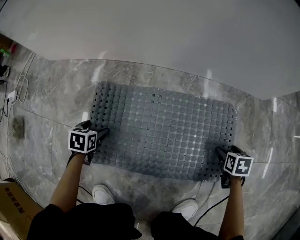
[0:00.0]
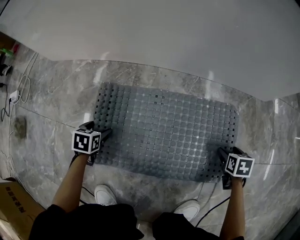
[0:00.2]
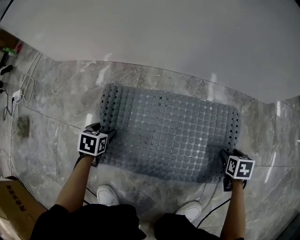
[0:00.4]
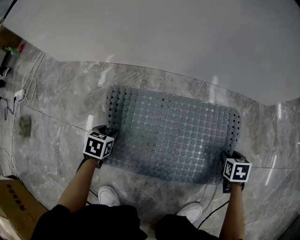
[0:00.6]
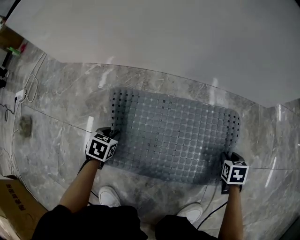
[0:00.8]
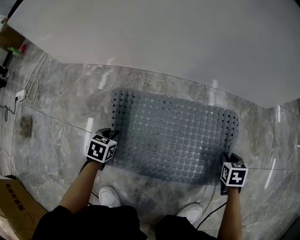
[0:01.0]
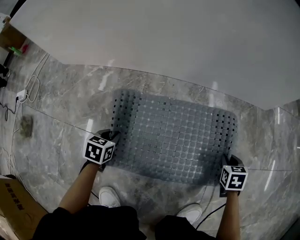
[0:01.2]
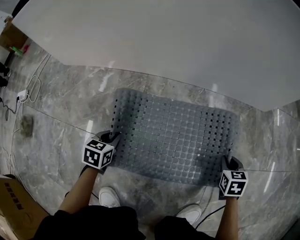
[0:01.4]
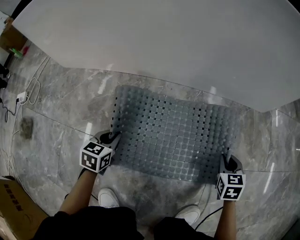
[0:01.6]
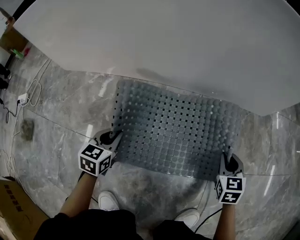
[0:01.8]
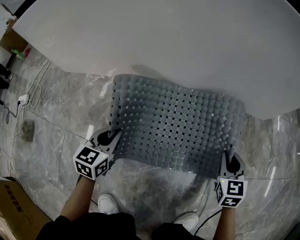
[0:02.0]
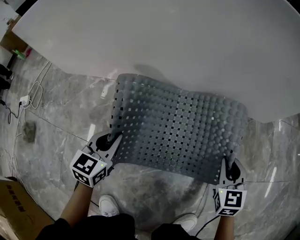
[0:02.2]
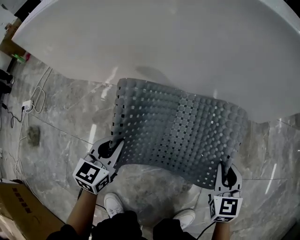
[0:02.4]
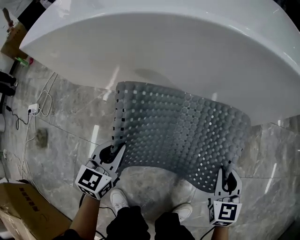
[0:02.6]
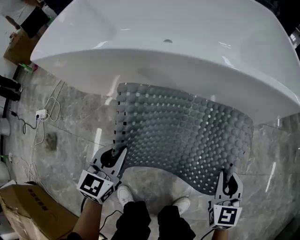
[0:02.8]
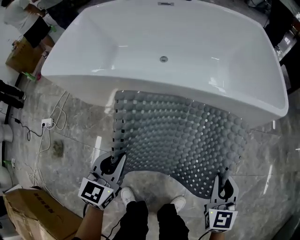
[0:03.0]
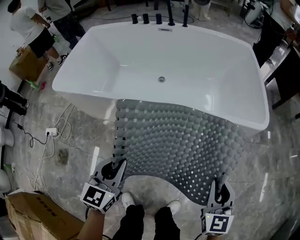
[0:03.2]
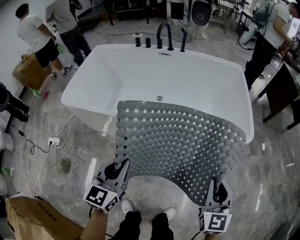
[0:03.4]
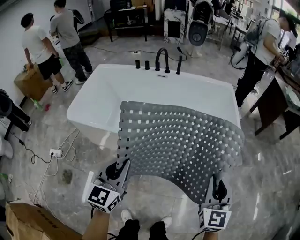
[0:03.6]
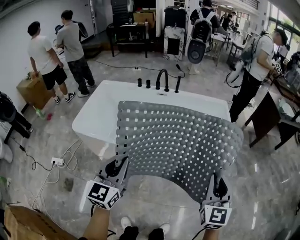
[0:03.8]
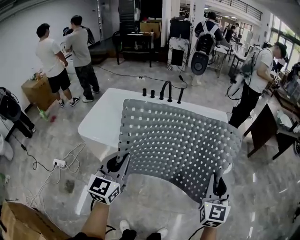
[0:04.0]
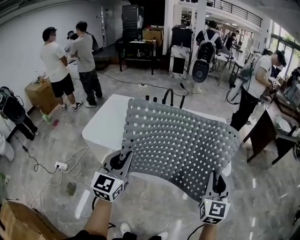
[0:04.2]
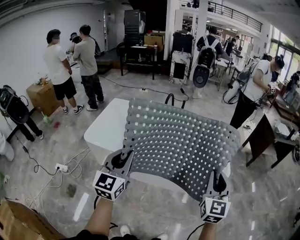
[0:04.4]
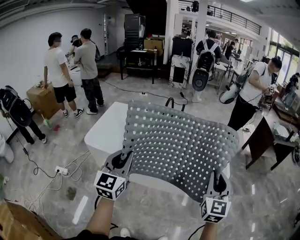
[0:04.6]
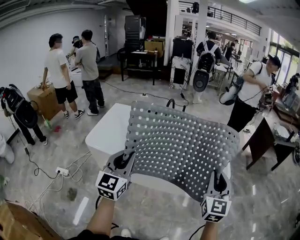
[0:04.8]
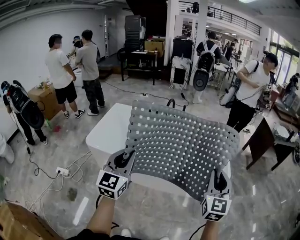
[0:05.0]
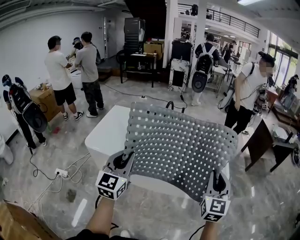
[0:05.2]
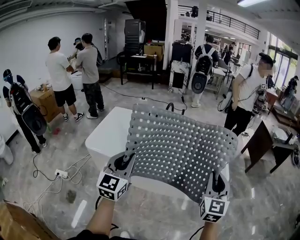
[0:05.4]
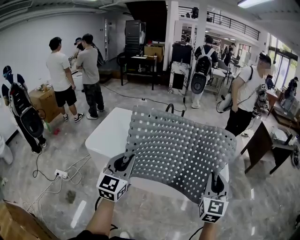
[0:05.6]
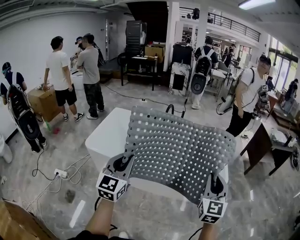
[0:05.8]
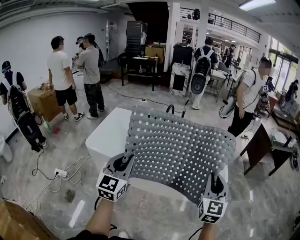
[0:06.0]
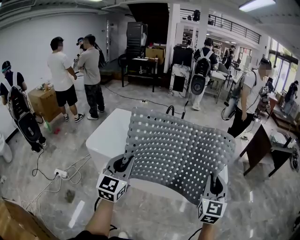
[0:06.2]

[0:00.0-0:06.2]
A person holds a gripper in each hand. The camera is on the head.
0:00.0 to 0:01.6: The left gripper is displaced upward and to the right by approximately 10 cm, swivels some 20 degrees, and closes its fingers; the right gripper moves upward and to the left, some 10 cm, rotates roughly 30 degrees, and closes.
0:01.6 to 0:03.2: The grippers both shift upward by approximately 60 cm. The right gripper rotates approximately 30 degrees. Meanwhile the left gripper swivels some 30 degrees.
0:03.2 to 0:04.6: The grippers both shift upward by about 40 cm. The right gripper turns by about 20 degrees, while the left gripper swivels approximately 30 degrees.
0:04.6 to 0:06.2: There are only small adjustments of the grippers.

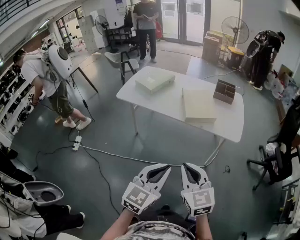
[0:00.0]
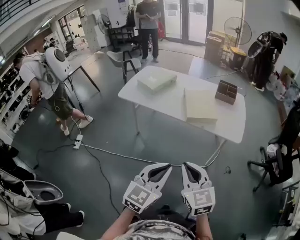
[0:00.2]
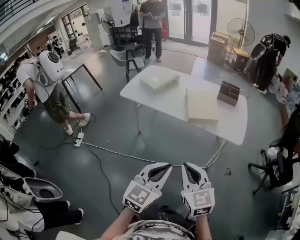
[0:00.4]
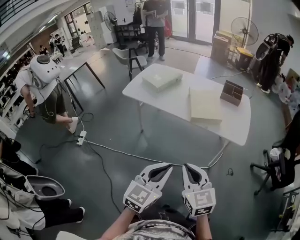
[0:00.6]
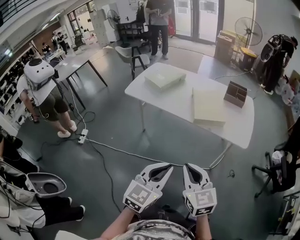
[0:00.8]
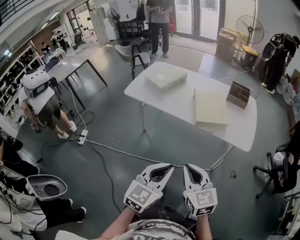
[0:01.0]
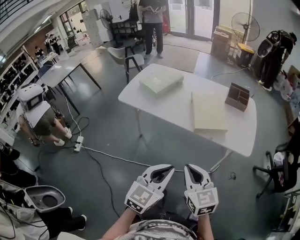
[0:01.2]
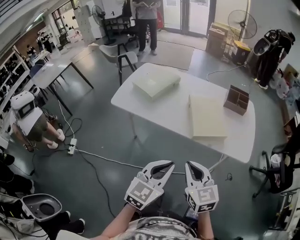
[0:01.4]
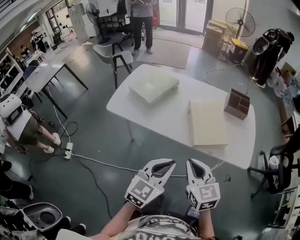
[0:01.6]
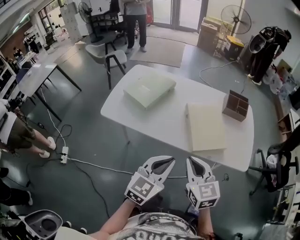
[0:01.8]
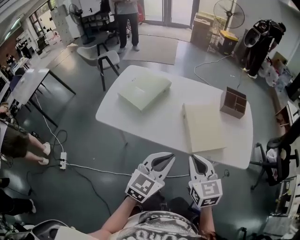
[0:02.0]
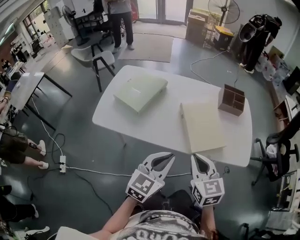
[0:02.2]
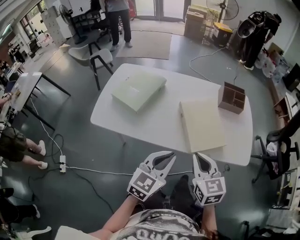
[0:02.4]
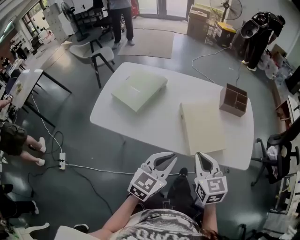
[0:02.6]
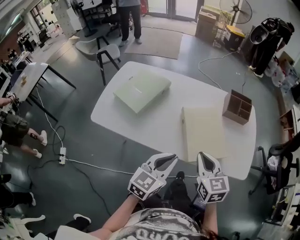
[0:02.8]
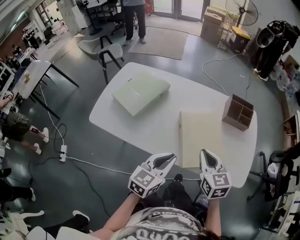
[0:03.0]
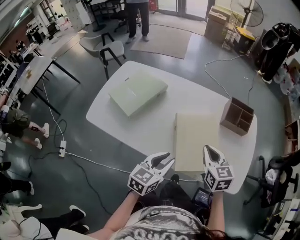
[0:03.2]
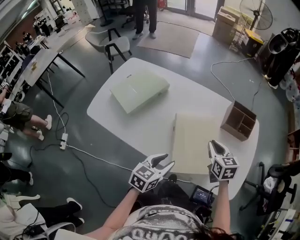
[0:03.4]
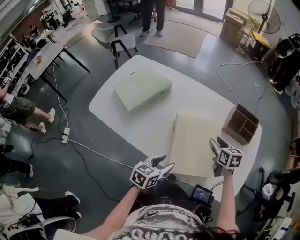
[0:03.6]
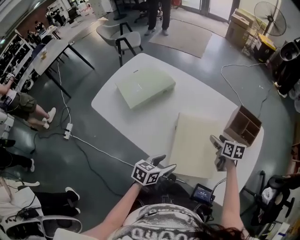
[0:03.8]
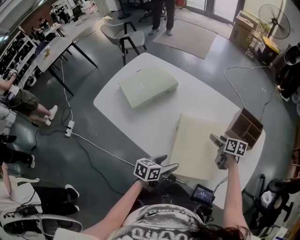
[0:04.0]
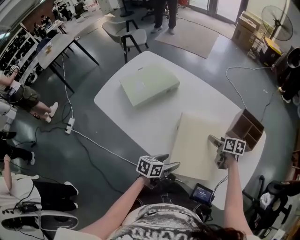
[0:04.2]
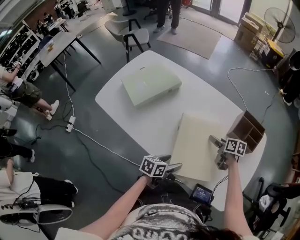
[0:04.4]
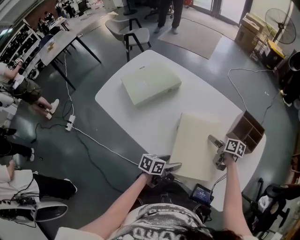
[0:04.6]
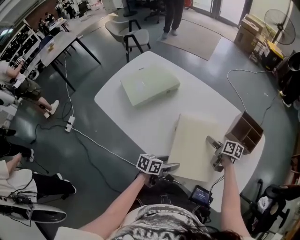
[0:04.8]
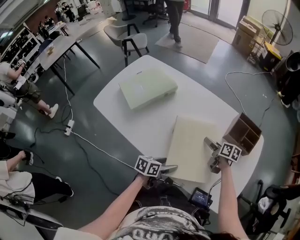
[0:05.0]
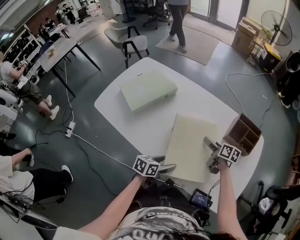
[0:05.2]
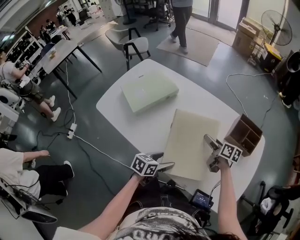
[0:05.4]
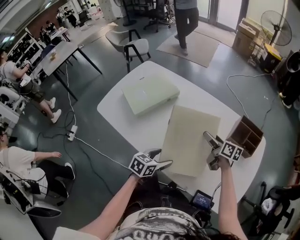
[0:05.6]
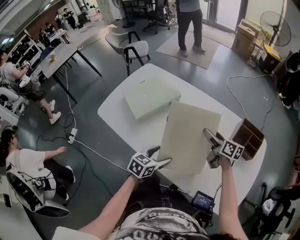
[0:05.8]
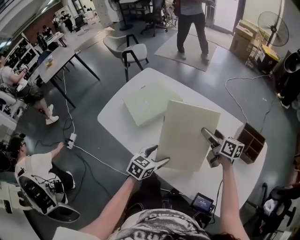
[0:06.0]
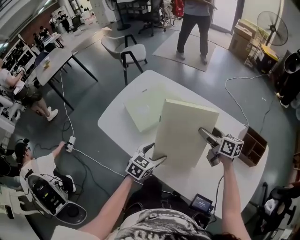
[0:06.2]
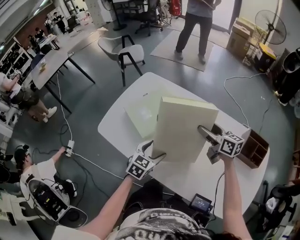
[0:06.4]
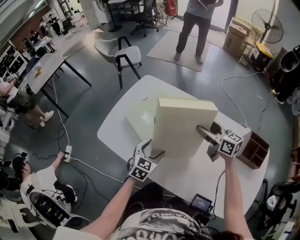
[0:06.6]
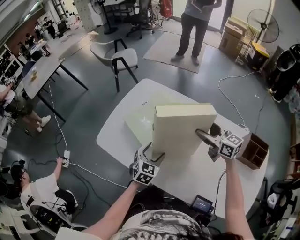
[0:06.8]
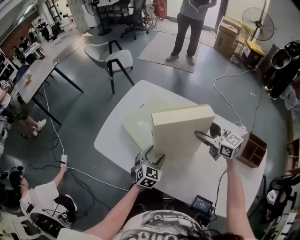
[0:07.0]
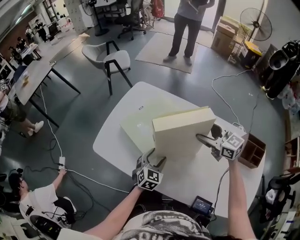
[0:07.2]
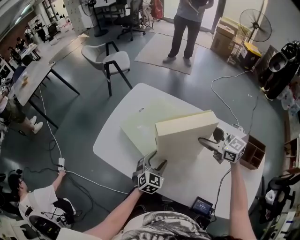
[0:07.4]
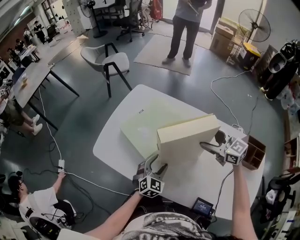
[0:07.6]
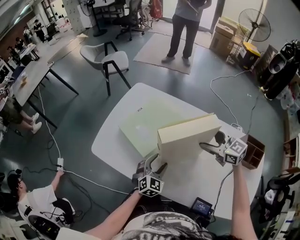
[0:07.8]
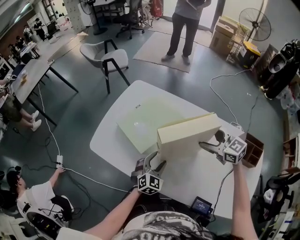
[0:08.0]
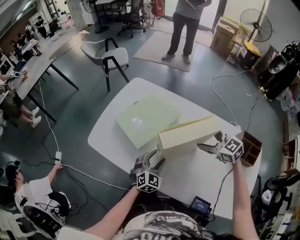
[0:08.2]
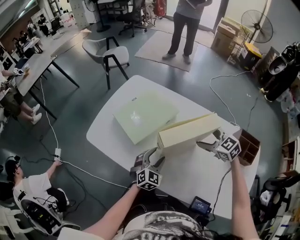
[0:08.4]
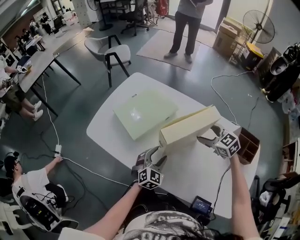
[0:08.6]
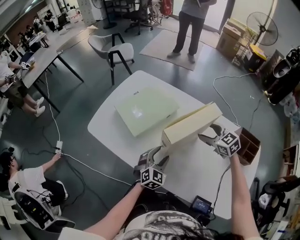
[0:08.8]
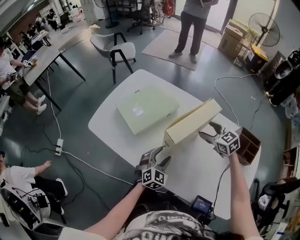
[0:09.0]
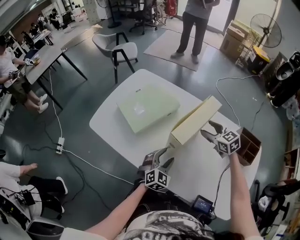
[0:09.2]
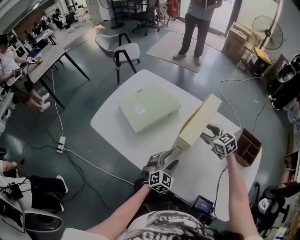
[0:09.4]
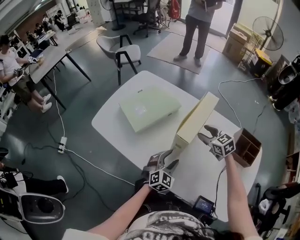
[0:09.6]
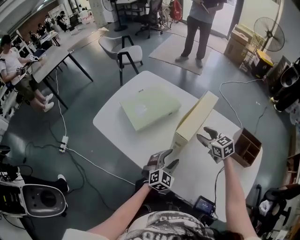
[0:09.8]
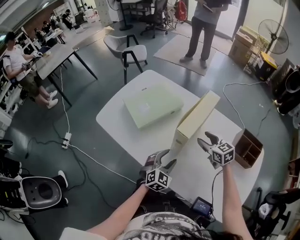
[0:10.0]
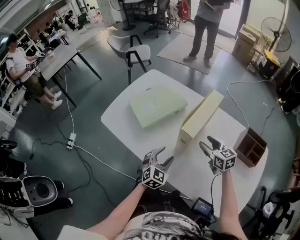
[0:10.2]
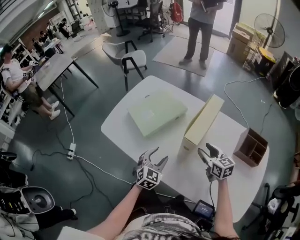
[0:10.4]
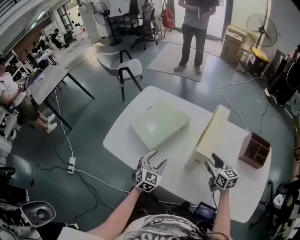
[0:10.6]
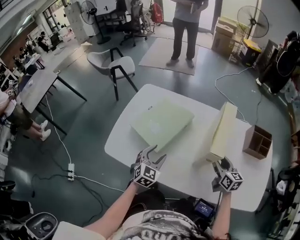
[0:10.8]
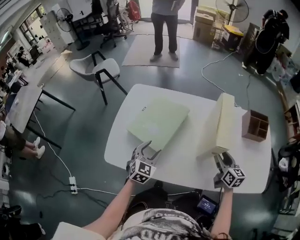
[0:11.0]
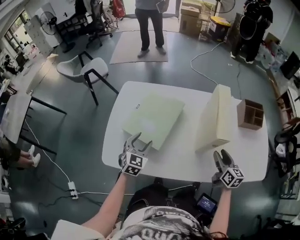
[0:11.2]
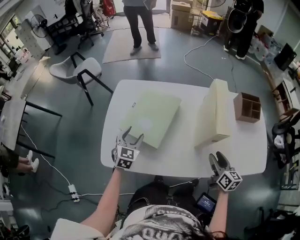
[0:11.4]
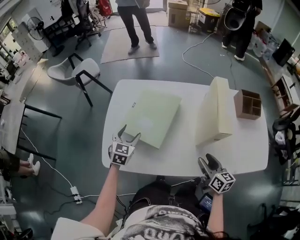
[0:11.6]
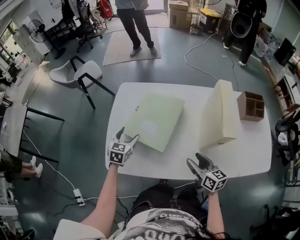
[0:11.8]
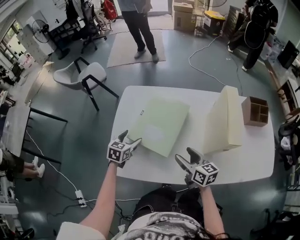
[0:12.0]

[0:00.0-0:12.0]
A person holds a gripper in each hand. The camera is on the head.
0:00.0 to 0:01.6: Both grippers travel together forward, roughly 25 cm.
0:01.6 to 0:03.0: The two grippers go approximately 20 cm forward.
0:03.0 to 0:04.4: The left gripper moves downward and to the right, about 20 cm, swivels about 40 degrees, and opens its fingers. The right gripper goes roughly 30 cm downward, forward and to the right, changes its angle by approximately 40 degrees, and opens.
0:04.4 to 0:06.0: The right gripper travels upward, to the left and forward by roughly 20 cm, and rotates roughly 30 degrees, while the left gripper shifts some 15 cm to the left, forward and upward, and turns by about 30 degrees.
0:06.0 to 0:07.6: The left gripper heads forward and to the left, covering about 15 cm, and turns by approximately 30 degrees. Meanwhile the right gripper shifts some 15 cm to the left, forward and upward, and turns by some 40 degrees.
0:07.6 to 0:09.0: The right gripper shifts approximately 10 cm downward and to the right. The left gripper shifts about 10 cm backward and to the right.
0:09.0 to 0:10.4: The right gripper heads backward, covering about 10 cm, and rotates some 30 degrees, while the left gripper travels to the left by roughly 5 cm.
0:10.4 to 0:12.0: The left gripper shifts by approximately 35 cm, and rotates about 30 degrees. The right gripper shifts by about 25 cm, and rotates roughly 30 degrees.

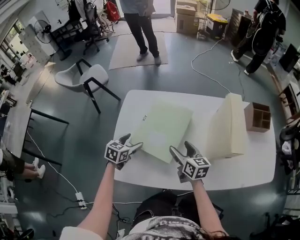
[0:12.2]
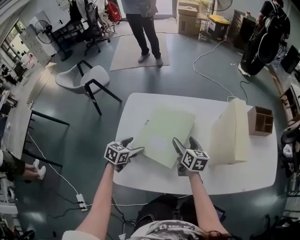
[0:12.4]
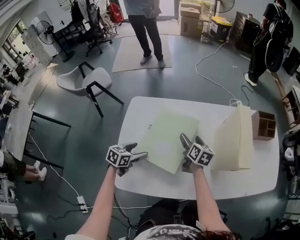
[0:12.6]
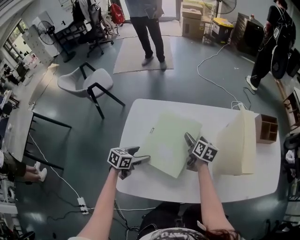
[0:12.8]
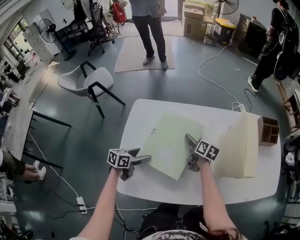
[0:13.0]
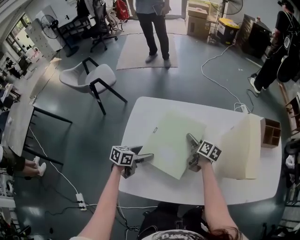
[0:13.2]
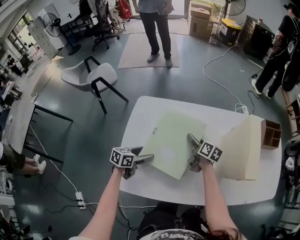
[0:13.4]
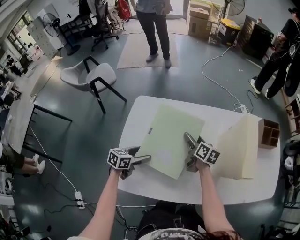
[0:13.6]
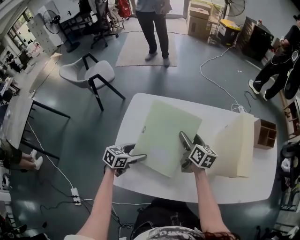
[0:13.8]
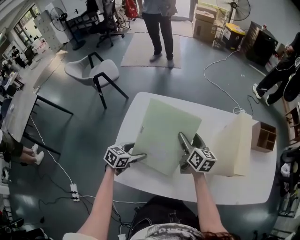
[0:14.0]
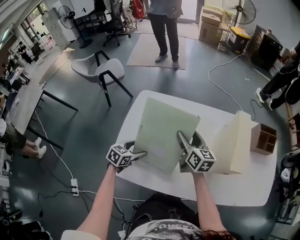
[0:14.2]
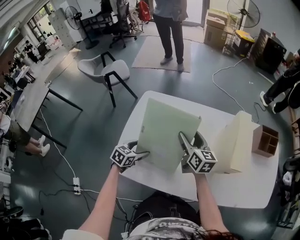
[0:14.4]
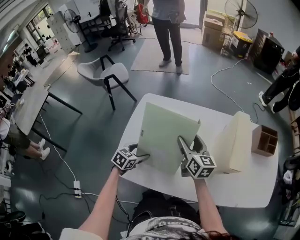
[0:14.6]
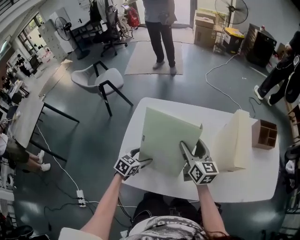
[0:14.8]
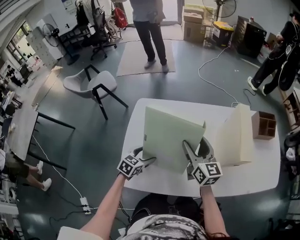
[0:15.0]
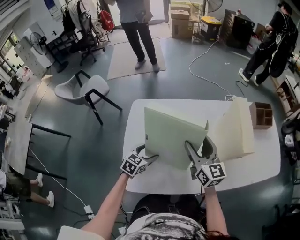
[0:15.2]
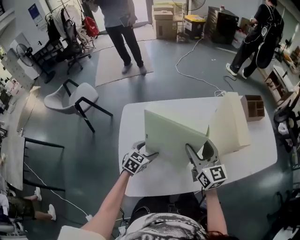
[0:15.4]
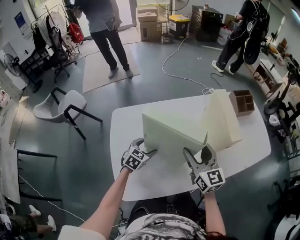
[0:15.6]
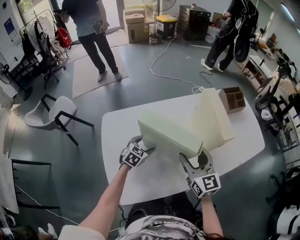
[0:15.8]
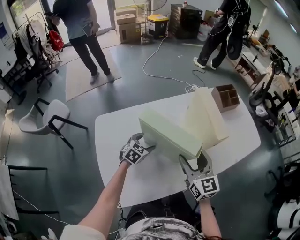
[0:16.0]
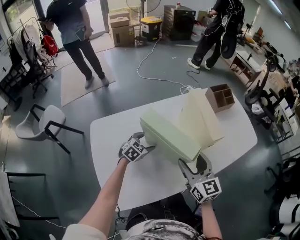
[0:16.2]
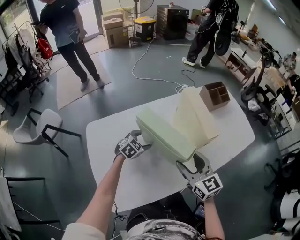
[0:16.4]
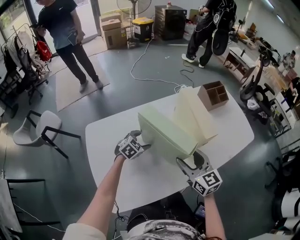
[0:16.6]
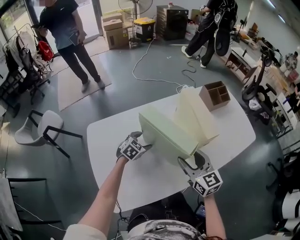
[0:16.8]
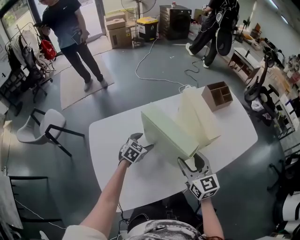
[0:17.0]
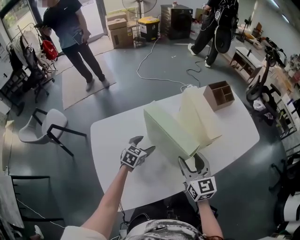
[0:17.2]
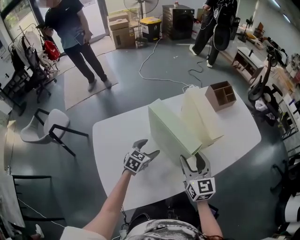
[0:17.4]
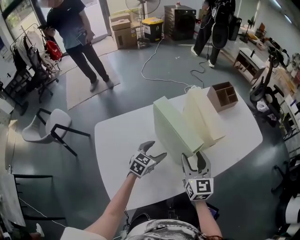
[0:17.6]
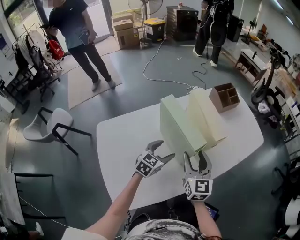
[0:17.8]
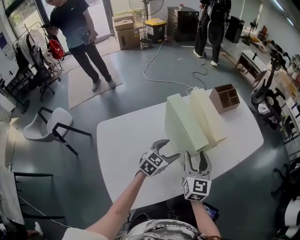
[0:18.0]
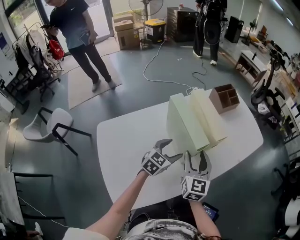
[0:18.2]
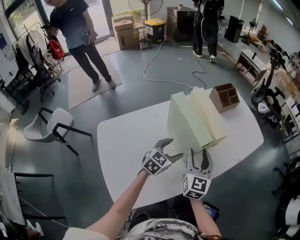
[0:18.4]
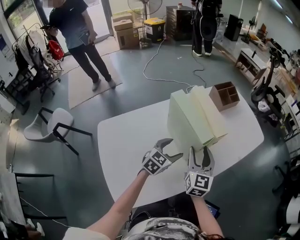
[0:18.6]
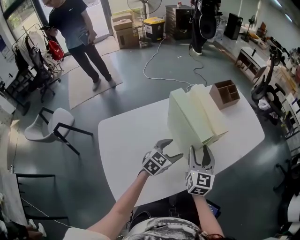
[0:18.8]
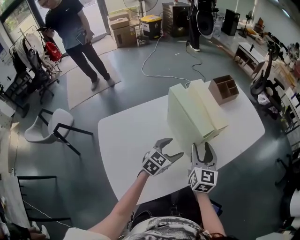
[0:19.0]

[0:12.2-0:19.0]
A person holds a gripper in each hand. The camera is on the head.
0:12.2 to 0:13.6: The right gripper heads forward, covering about 15 cm; the left gripper turns by roughly 20 degrees.
0:13.6 to 0:15.0: The right gripper moves upward and backward, roughly 20 cm, and rotates roughly 30 degrees. The left gripper rotates approximately 30 degrees.
0:15.0 to 0:16.2: The right gripper changes place by some 15 cm, and turns by some 20 degrees. Meanwhile the left gripper moves about 20 cm, and rotates some 40 degrees.
0:16.2 to 0:17.6: The left gripper moves to the right and upward, some 5 cm.
0:17.6 to 0:19.0: The left gripper goes about 5 cm to the right.
